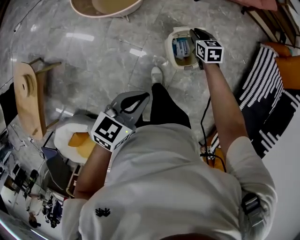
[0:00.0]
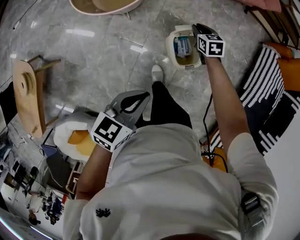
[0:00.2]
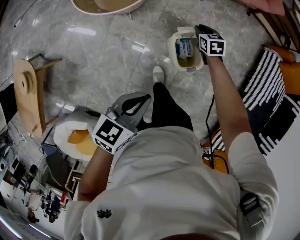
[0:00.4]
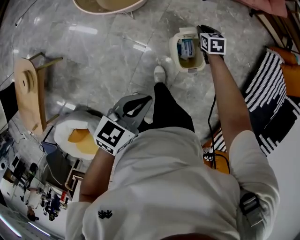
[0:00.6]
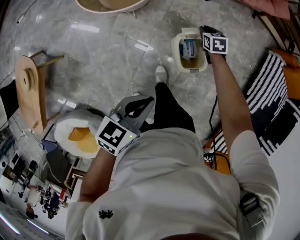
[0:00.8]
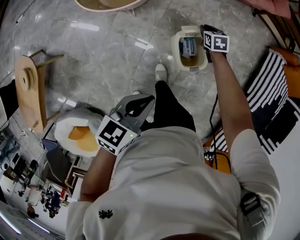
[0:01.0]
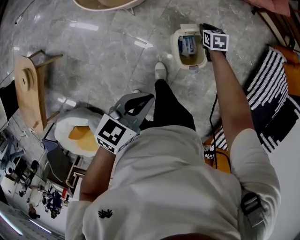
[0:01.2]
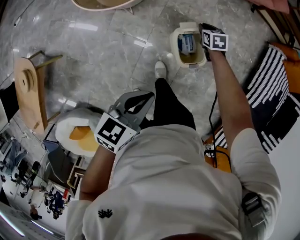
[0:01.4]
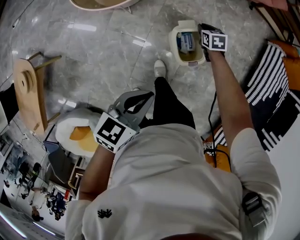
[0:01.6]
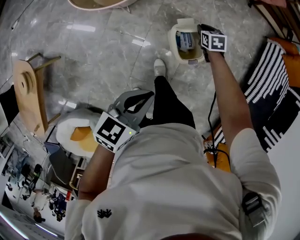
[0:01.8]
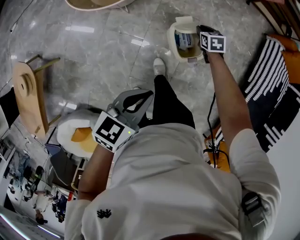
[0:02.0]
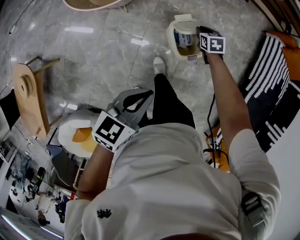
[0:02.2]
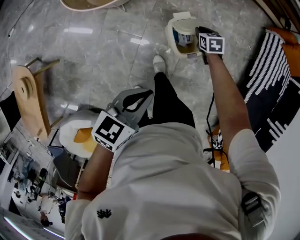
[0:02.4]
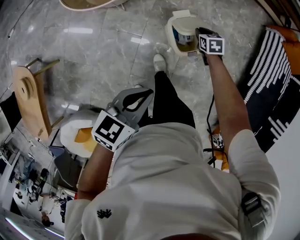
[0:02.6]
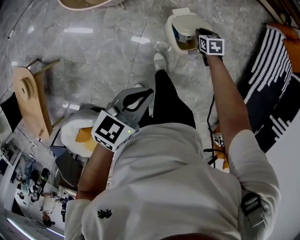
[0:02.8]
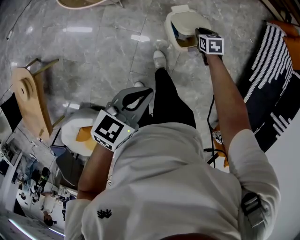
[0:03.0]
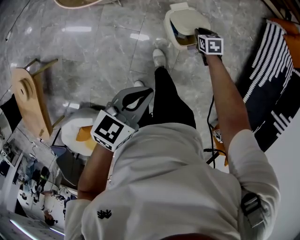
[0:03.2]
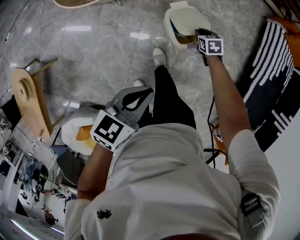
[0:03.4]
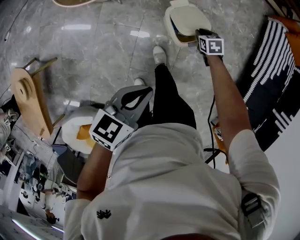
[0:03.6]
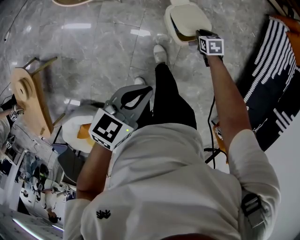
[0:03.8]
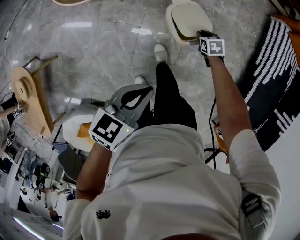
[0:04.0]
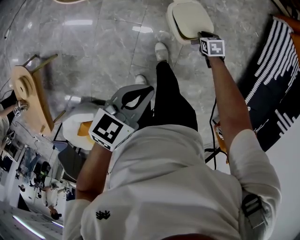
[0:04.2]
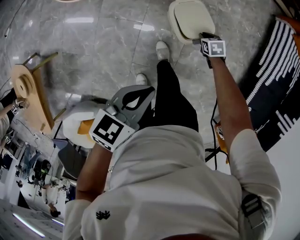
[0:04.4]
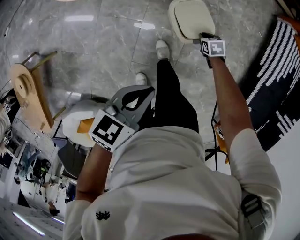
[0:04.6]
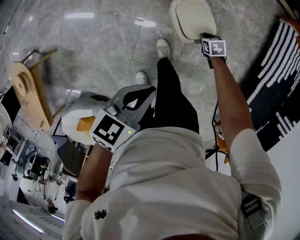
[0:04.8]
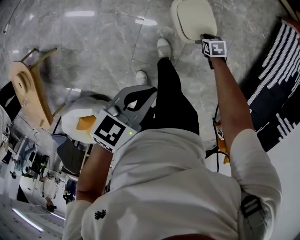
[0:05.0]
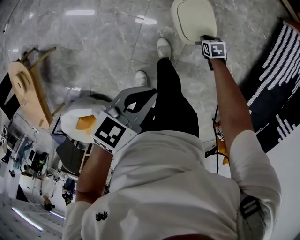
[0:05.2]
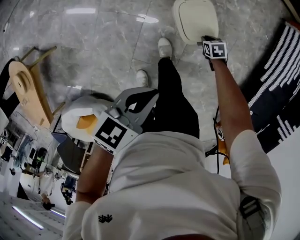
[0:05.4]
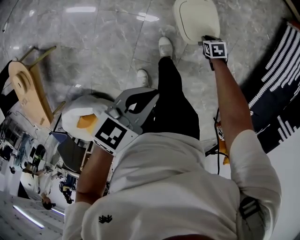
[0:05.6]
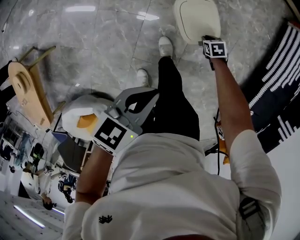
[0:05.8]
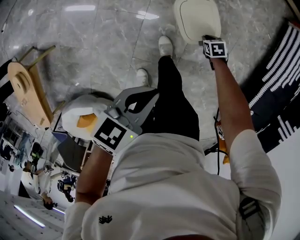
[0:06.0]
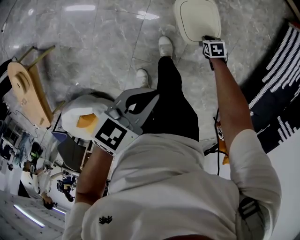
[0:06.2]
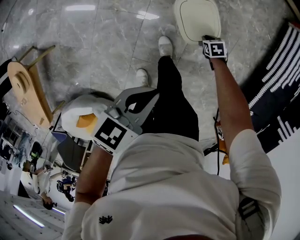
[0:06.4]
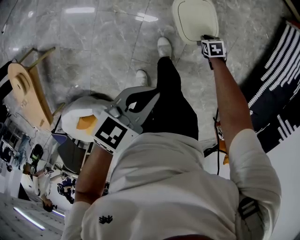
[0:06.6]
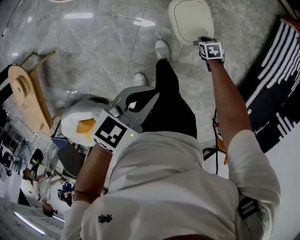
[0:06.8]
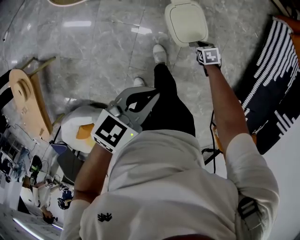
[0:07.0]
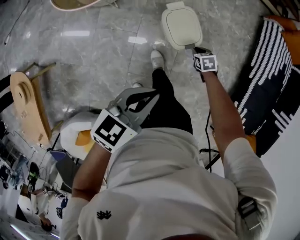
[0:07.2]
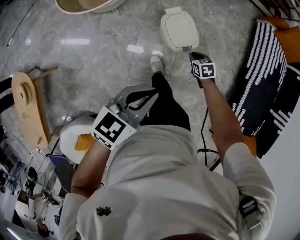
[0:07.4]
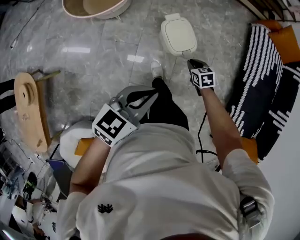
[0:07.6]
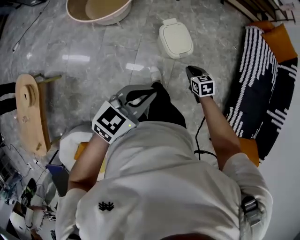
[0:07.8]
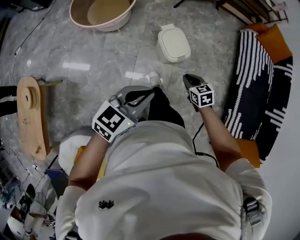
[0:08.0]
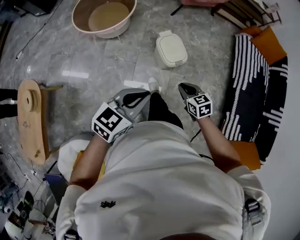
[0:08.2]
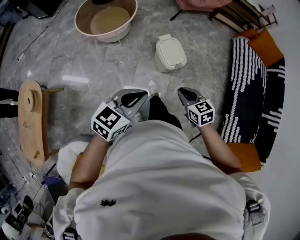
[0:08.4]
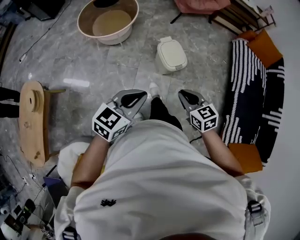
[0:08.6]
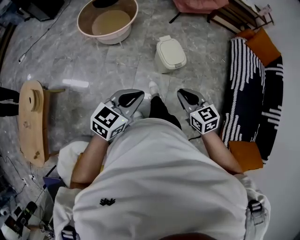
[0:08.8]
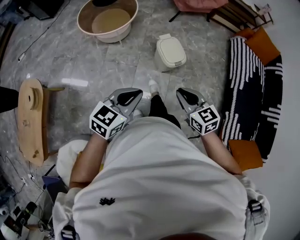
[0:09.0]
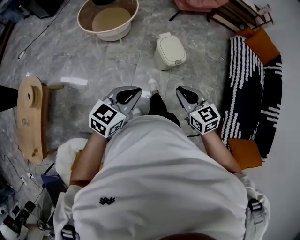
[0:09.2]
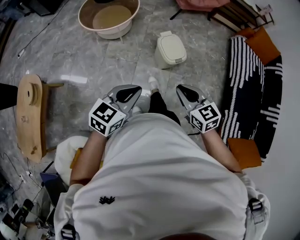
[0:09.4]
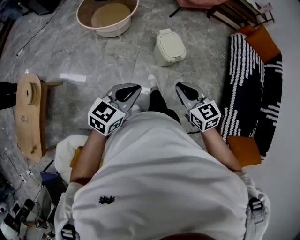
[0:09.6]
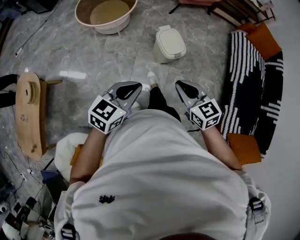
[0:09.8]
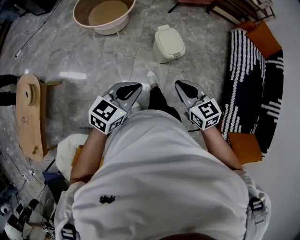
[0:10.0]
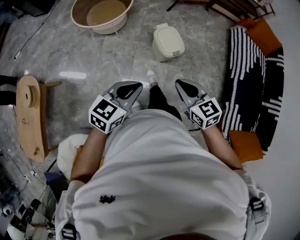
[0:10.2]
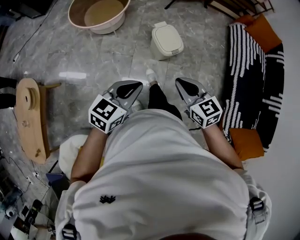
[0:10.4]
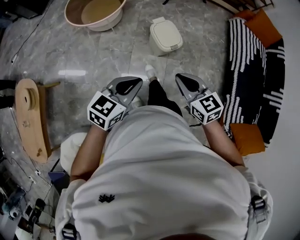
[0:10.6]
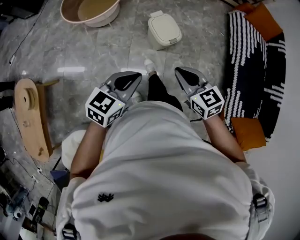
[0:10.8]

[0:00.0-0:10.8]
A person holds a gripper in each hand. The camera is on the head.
0:00.0 to 0:01.6: The right gripper shifts about 10 cm downward.
0:01.6 to 0:03.0: The right gripper goes approximately 10 cm backward and to the right.
0:03.0 to 0:04.6: The right gripper heads downward and backward, covering about 10 cm.
0:04.6 to 0:06.2: The left gripper is displaced downward by about 5 cm; the right gripper goes some 10 cm downward.
0:06.2 to 0:07.8: The left gripper travels upward by roughly 20 cm, and changes its angle by some 30 degrees. Meanwhile the right gripper travels upward by about 30 cm, and turns by about 30 degrees.
0:07.8 to 0:09.2: The right gripper is displaced upward and backward by some 30 cm, and turns by approximately 30 degrees, while the left gripper is displaced backward and to the left by roughly 15 cm.
0:09.2 to 0:10.8: The left gripper changes place by some 5 cm.

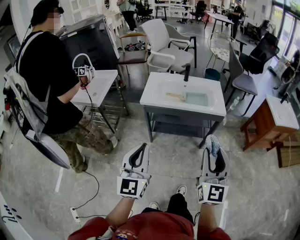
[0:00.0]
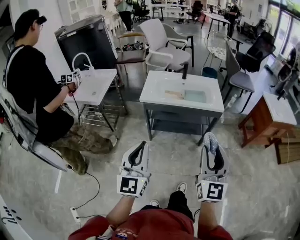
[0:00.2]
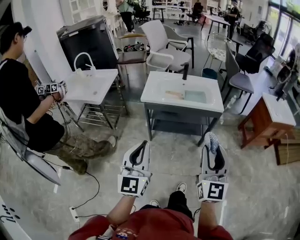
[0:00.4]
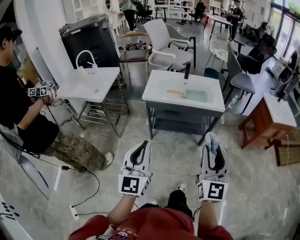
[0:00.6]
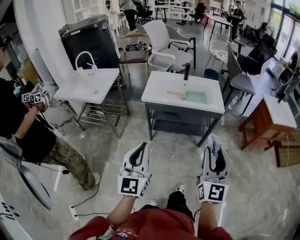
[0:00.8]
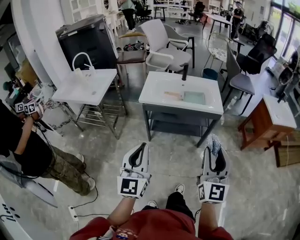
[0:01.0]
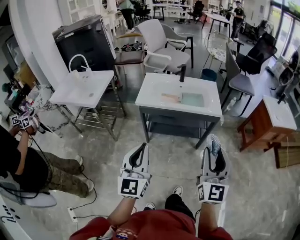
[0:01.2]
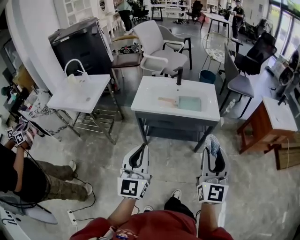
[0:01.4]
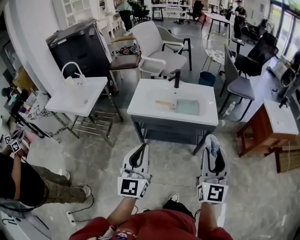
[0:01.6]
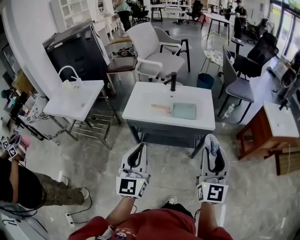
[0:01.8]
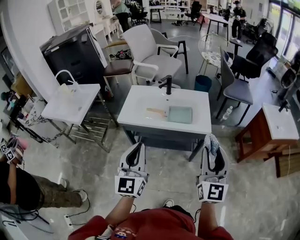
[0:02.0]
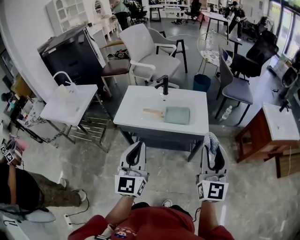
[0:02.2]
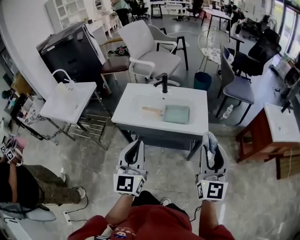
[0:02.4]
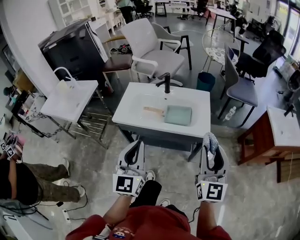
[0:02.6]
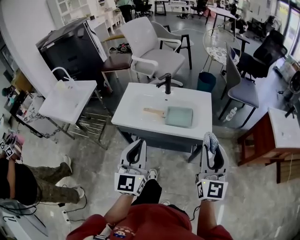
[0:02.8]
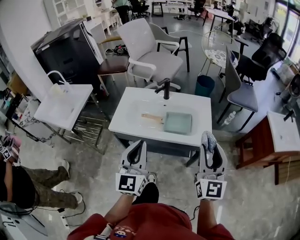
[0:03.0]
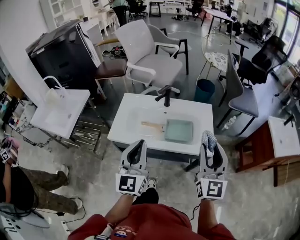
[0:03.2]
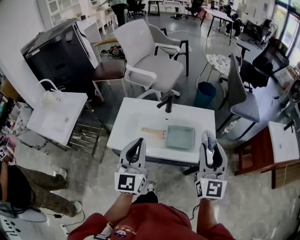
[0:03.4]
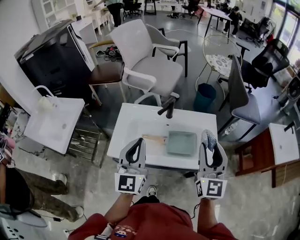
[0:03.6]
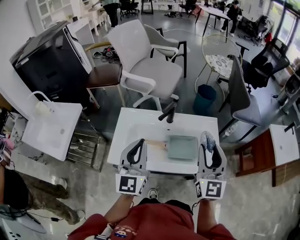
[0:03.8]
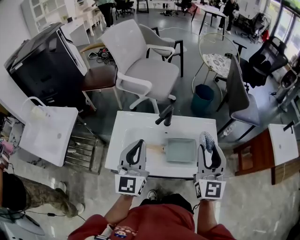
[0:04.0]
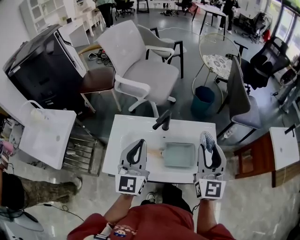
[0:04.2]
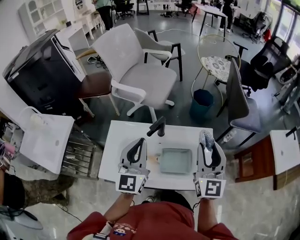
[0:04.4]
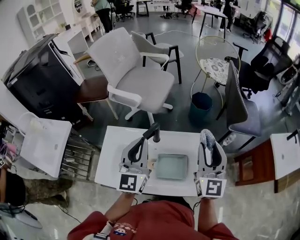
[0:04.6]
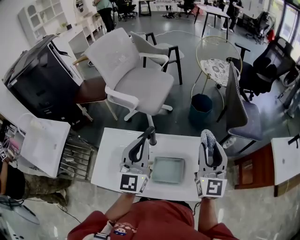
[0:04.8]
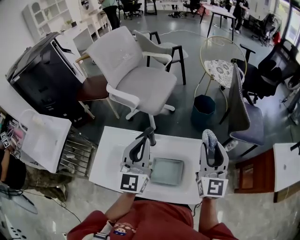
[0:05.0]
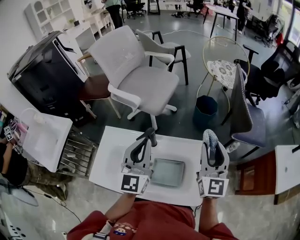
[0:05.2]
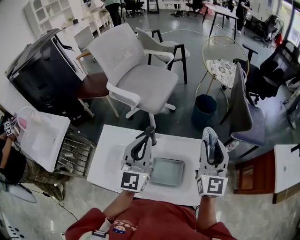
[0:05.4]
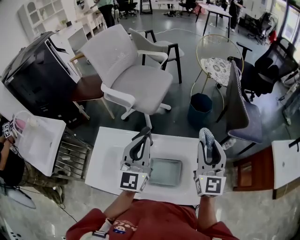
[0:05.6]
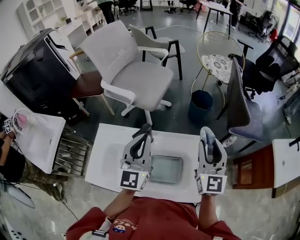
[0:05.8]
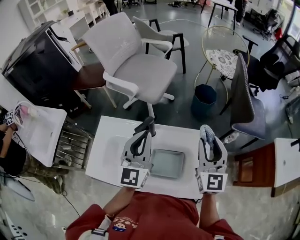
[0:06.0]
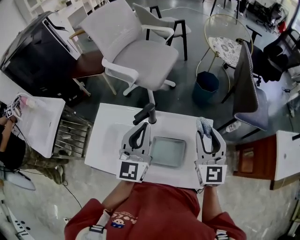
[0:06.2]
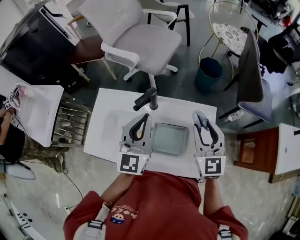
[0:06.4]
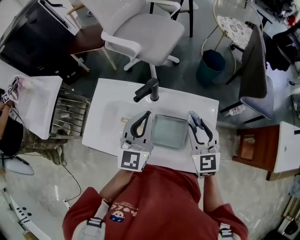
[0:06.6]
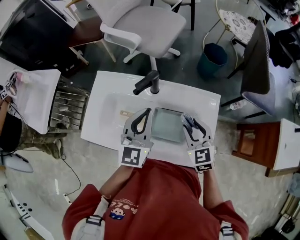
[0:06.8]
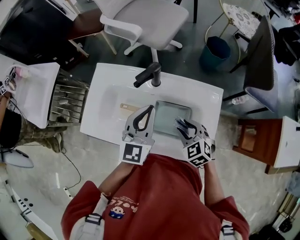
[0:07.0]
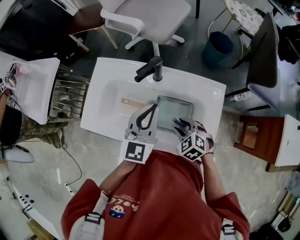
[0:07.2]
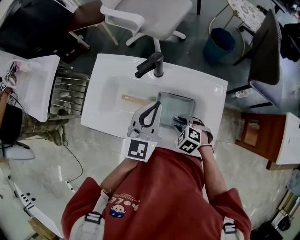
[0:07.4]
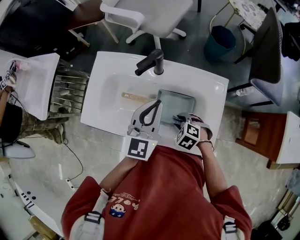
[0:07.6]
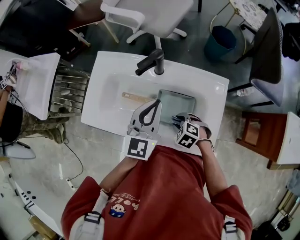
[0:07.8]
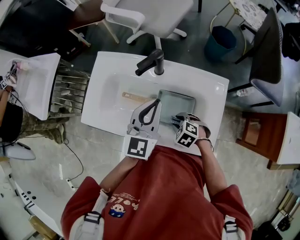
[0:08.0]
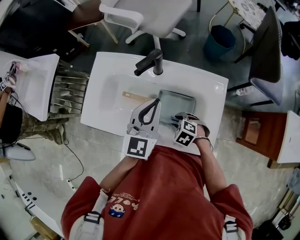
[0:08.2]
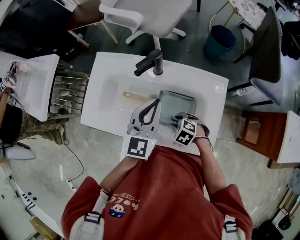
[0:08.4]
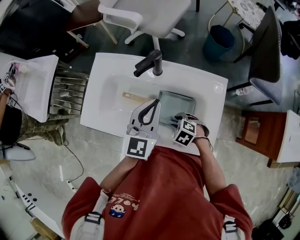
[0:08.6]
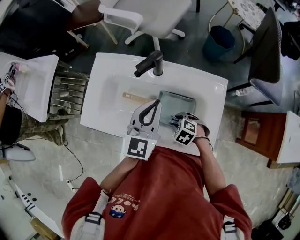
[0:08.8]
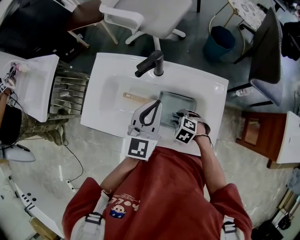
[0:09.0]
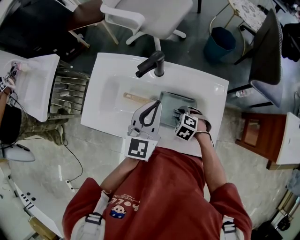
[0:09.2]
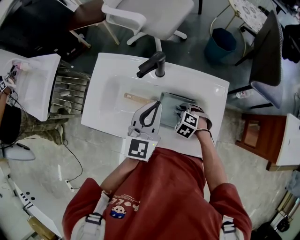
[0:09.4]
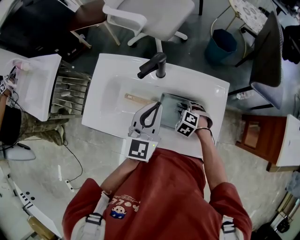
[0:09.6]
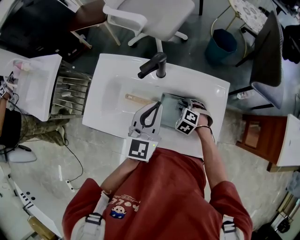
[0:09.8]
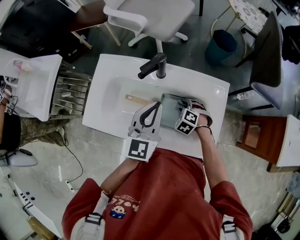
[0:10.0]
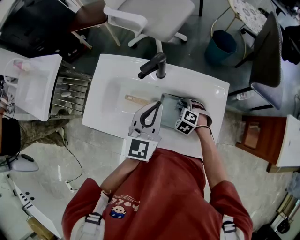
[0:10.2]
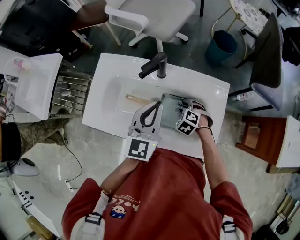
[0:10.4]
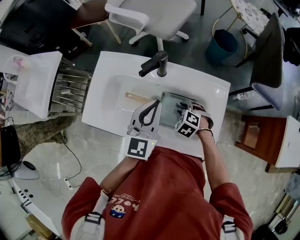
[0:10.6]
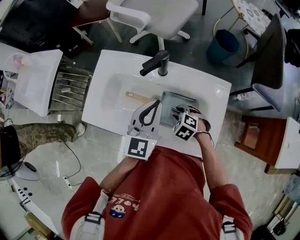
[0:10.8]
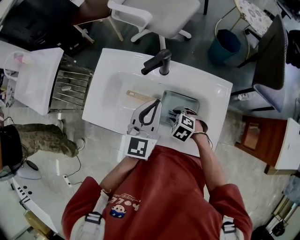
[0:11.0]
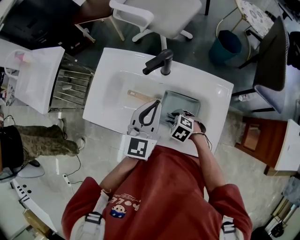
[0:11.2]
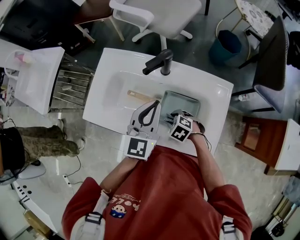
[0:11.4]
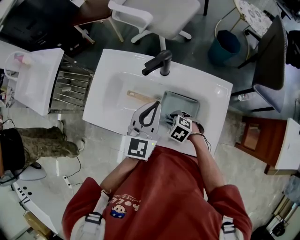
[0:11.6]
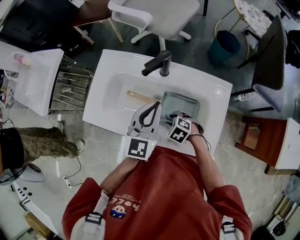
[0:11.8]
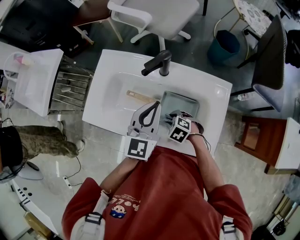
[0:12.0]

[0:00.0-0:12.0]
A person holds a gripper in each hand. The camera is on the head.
0:00.0 to 0:01.6: Both grippers travel together forward and to the right, approximately 10 cm.
0:01.6 to 0:03.0: Both grippers travel together forward, roughly 20 cm.
0:03.0 to 0:04.4: Both grippers move forward, about 30 cm.
0:04.4 to 0:06.0: The left gripper is displaced forward and to the right by roughly 10 cm. The right gripper moves forward, to the right and downward, roughly 15 cm.
0:06.0 to 0:07.6: The left gripper moves downward, about 15 cm, while the right gripper heads downward, covering roughly 35 cm, and angles its fingers downward, by roughly 70 degrees.
0:07.6 to 0:09.0: The grippers move only a little.
0:09.0 to 0:10.4: The right gripper is displaced forward by some 5 cm.
0:10.4 to 0:12.0: The right gripper changes place by roughly 10 cm.

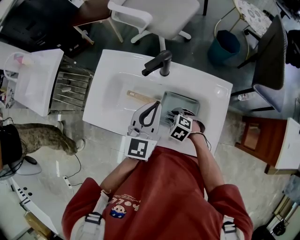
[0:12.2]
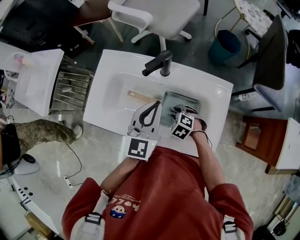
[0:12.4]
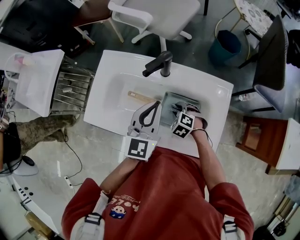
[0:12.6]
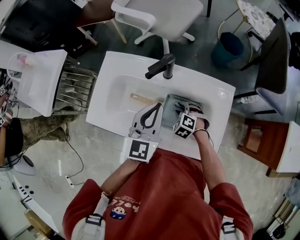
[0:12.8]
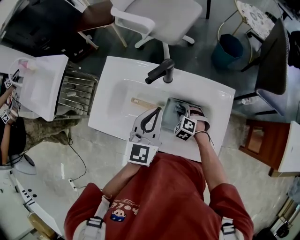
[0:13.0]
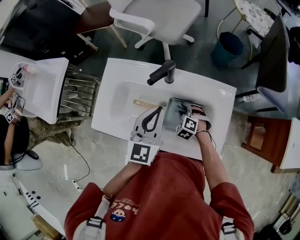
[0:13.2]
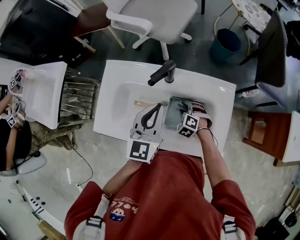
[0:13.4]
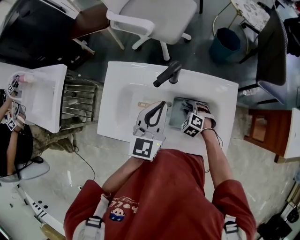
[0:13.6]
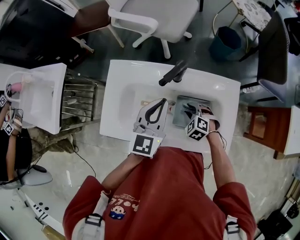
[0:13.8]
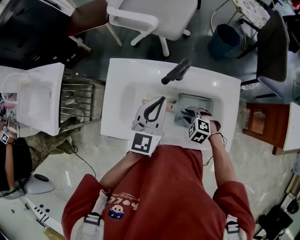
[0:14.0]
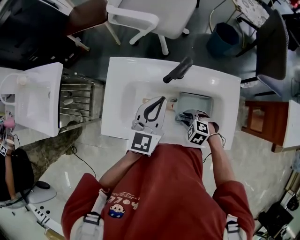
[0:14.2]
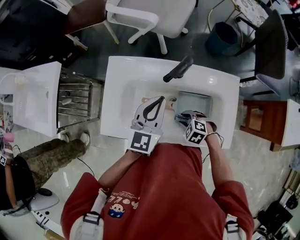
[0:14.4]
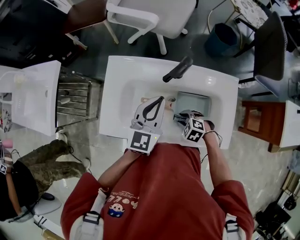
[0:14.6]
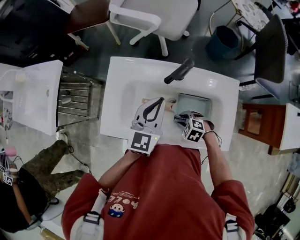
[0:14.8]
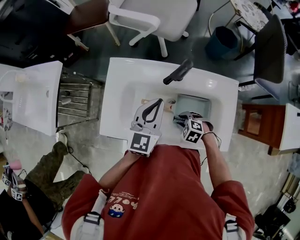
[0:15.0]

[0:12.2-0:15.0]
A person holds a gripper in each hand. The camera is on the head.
0:12.2 to 0:13.6: The right gripper is displaced forward by roughly 5 cm. Meanwhile the left gripper changes place by approximately 5 cm.
0:13.6 to 0:15.0: The right gripper moves to the left and backward, roughly 10 cm, and swivels about 20 degrees; the left gripper moves to the left, about 5 cm.
